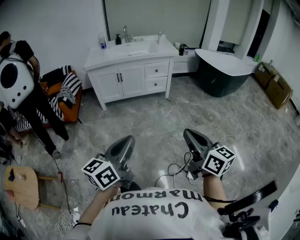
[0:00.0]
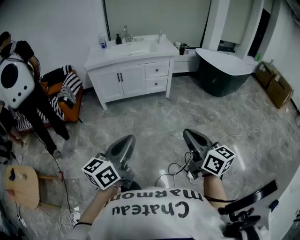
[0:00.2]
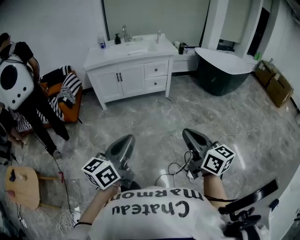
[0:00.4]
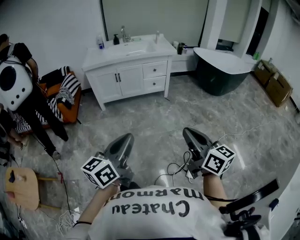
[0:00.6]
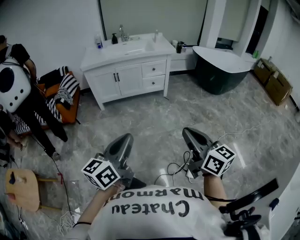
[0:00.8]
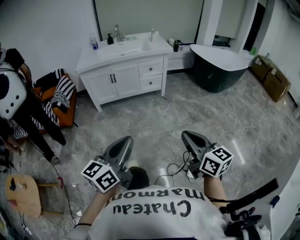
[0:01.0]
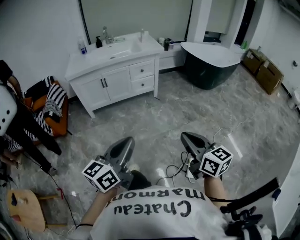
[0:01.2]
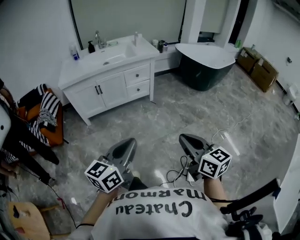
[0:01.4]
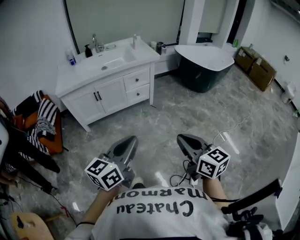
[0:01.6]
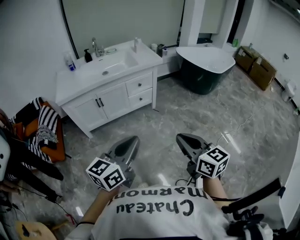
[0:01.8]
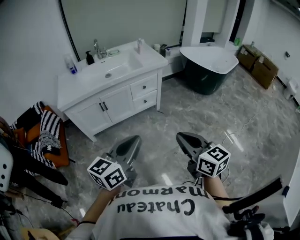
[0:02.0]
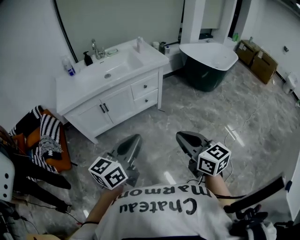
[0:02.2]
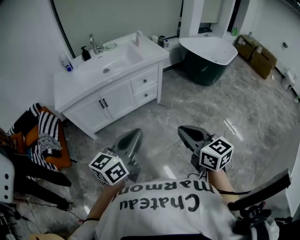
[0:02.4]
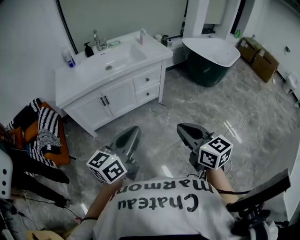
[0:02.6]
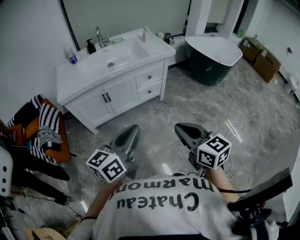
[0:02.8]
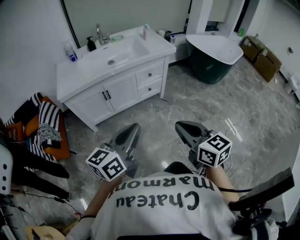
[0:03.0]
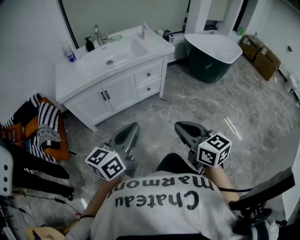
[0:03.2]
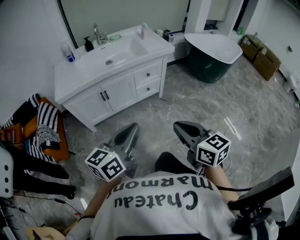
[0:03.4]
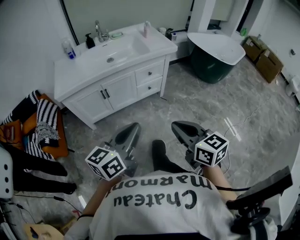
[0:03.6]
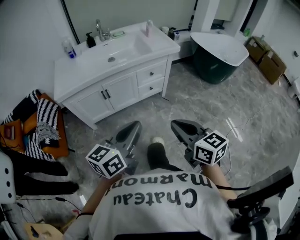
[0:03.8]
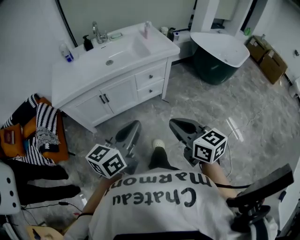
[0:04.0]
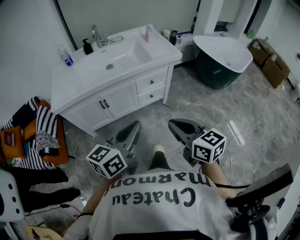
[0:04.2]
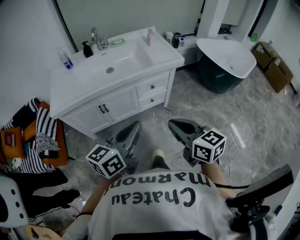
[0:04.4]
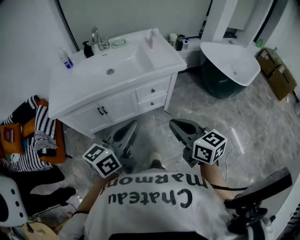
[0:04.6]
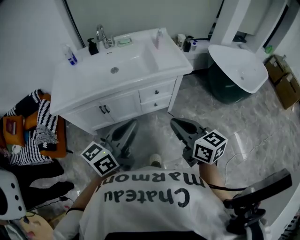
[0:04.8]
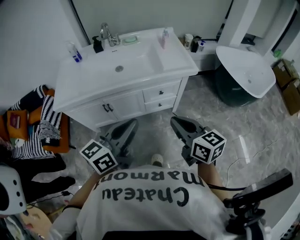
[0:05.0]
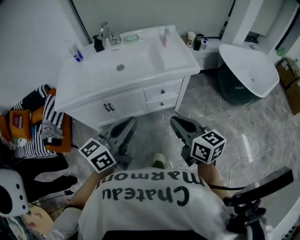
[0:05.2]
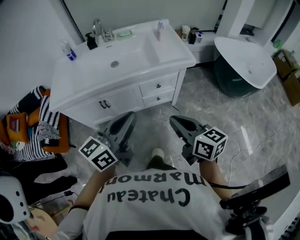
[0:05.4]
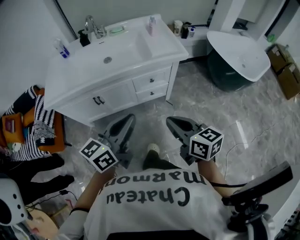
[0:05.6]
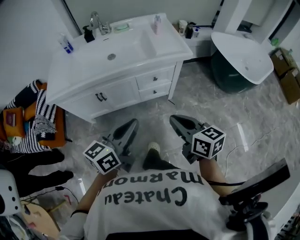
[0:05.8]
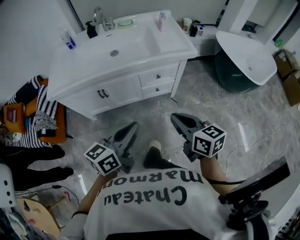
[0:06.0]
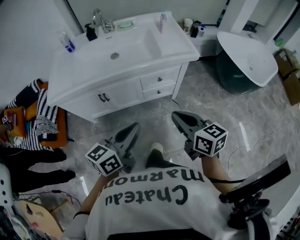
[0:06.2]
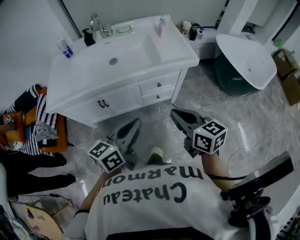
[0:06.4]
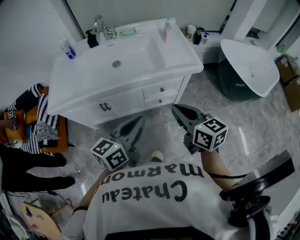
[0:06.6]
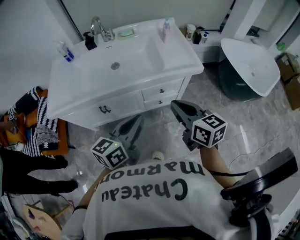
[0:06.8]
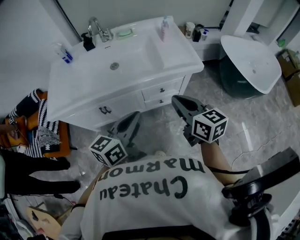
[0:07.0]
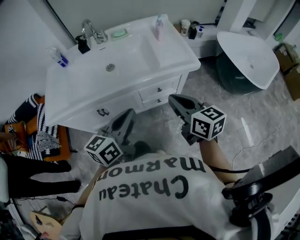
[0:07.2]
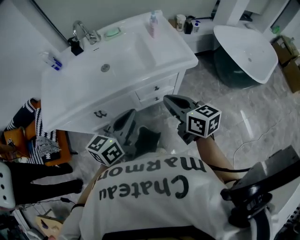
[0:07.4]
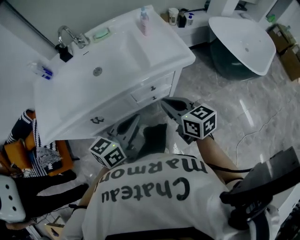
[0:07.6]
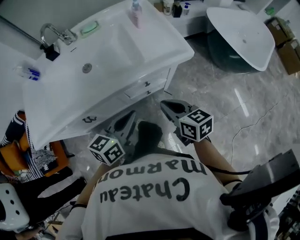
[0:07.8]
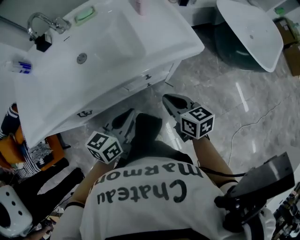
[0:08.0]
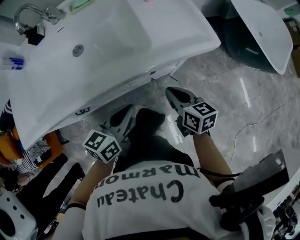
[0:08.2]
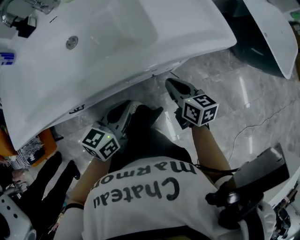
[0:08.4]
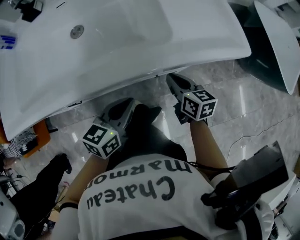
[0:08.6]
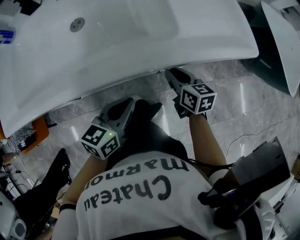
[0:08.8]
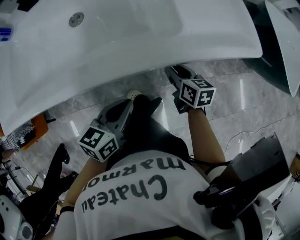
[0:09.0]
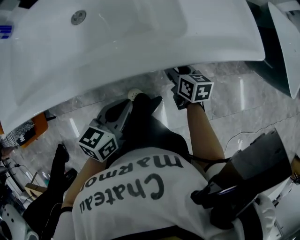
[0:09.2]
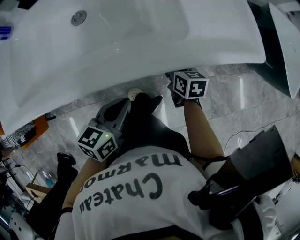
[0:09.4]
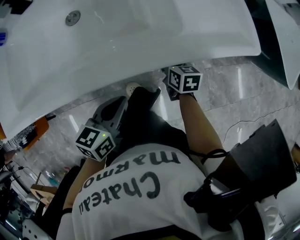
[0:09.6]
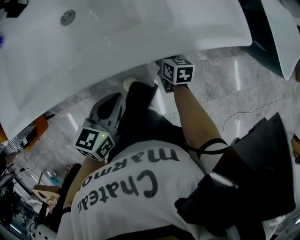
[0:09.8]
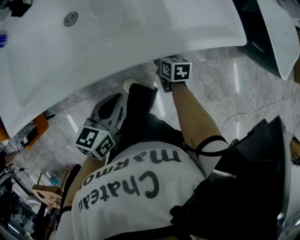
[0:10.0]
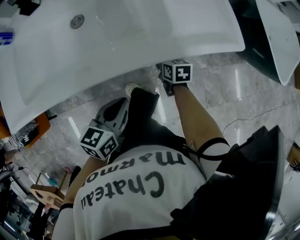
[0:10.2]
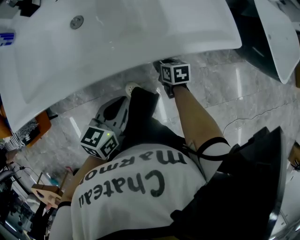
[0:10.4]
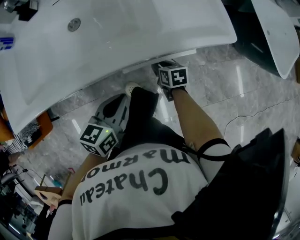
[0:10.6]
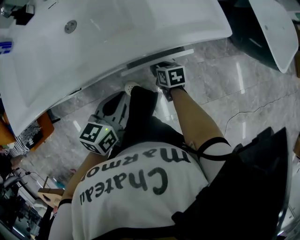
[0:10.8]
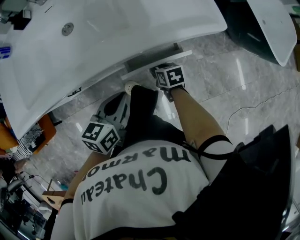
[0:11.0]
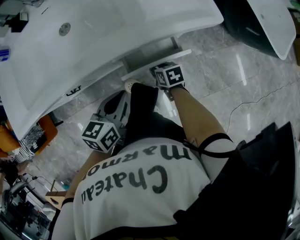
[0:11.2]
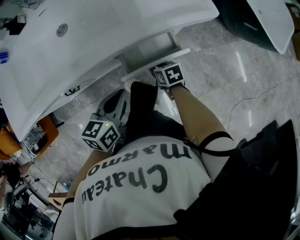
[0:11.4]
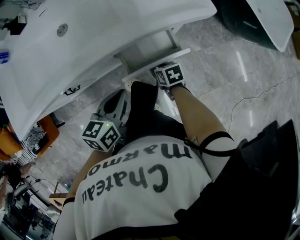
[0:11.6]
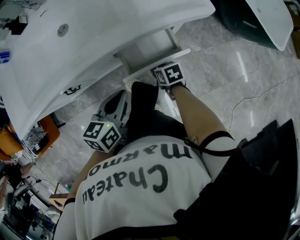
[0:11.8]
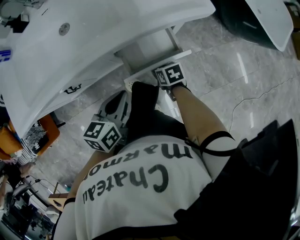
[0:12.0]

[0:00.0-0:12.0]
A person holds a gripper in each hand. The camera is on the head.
0:00.0 to 0:01.6: Both grippers travel together forward, approximately 20 cm.
0:01.6 to 0:03.0: The left gripper travels forward and to the left by some 20 cm; the right gripper shifts some 20 cm to the left and forward.
0:03.0 to 0:04.4: The two grippers go approximately 20 cm forward.
0:04.4 to 0:06.0: The right gripper travels forward, downward and to the right by some 10 cm, while the left gripper goes some 5 cm downward.
0:06.0 to 0:07.6: The two grippers go roughly 20 cm forward.
0:07.6 to 0:09.0: The right gripper travels downward and forward by about 35 cm, and opens up. The left gripper goes some 25 cm downward.
0:09.0 to 0:10.4: The left gripper goes approximately 5 cm upward.
0:10.4 to 0:12.0: The right gripper is displaced backward by roughly 10 cm. Meanwhile the left gripper shifts by some 5 cm.

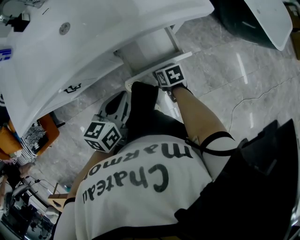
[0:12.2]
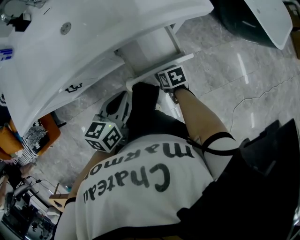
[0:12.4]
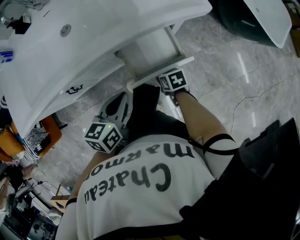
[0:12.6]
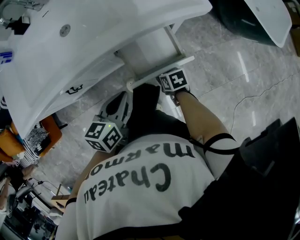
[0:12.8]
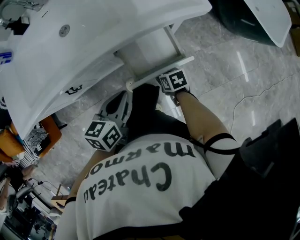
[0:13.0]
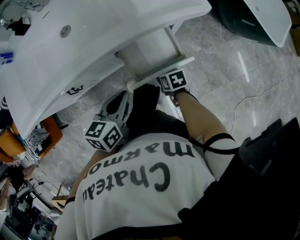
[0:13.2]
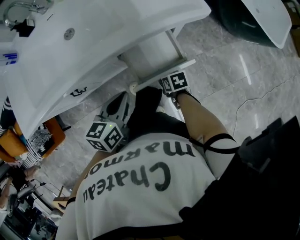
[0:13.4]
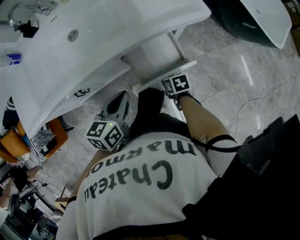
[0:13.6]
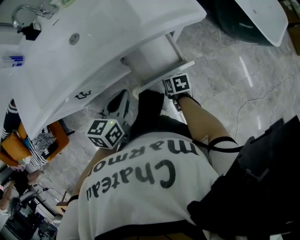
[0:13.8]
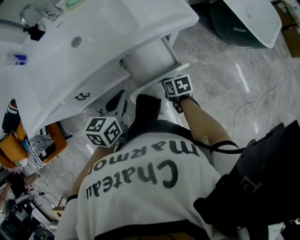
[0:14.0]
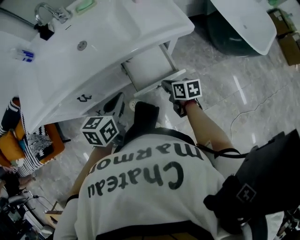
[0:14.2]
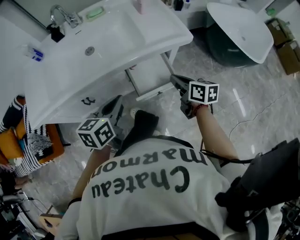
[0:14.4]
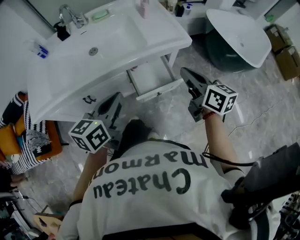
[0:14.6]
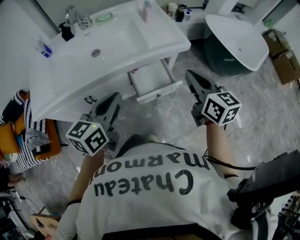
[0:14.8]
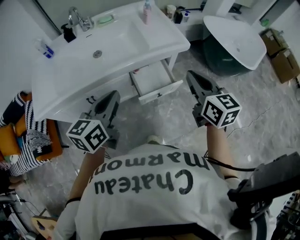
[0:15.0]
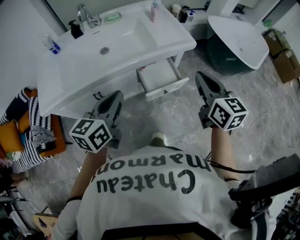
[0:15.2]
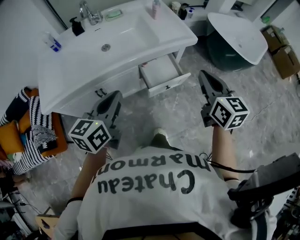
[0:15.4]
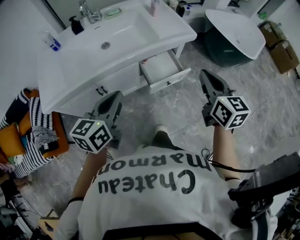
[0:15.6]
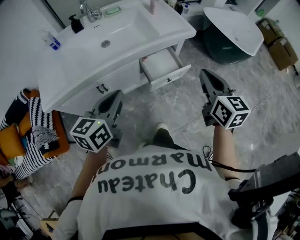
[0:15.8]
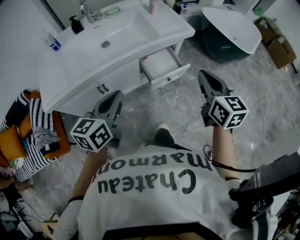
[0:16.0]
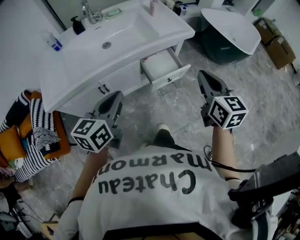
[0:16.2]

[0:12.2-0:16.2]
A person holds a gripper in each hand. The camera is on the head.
0:12.2 to 0:13.6: The grippers make only small movements.
0:13.6 to 0:14.8: The left gripper goes approximately 20 cm upward. The right gripper shifts roughly 40 cm upward, points its fingers approximately 50 degrees further upward, and closes.
0:14.8 to 0:16.2: The left gripper travels backward and to the left by some 15 cm. Meanwhile the right gripper is displaced backward by approximately 15 cm.

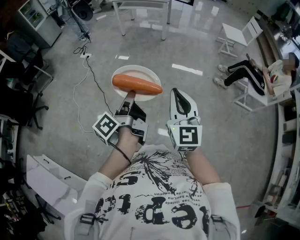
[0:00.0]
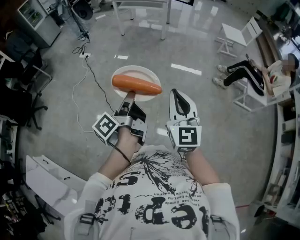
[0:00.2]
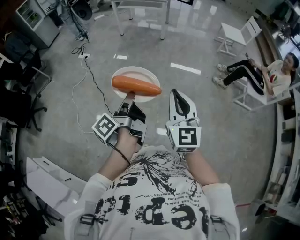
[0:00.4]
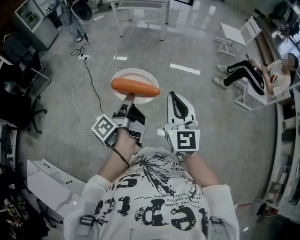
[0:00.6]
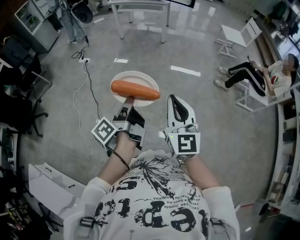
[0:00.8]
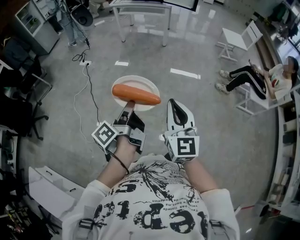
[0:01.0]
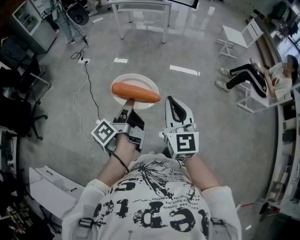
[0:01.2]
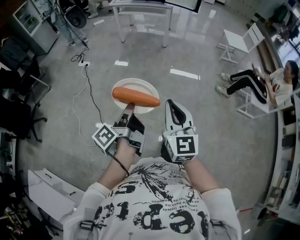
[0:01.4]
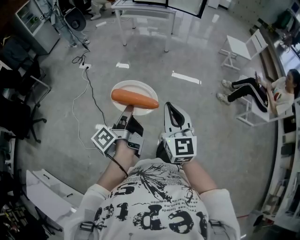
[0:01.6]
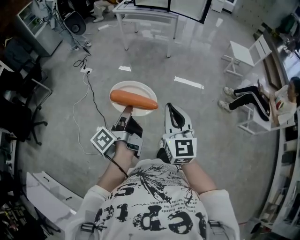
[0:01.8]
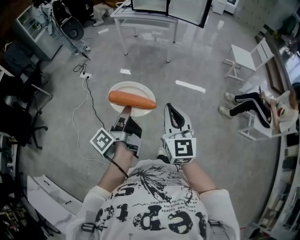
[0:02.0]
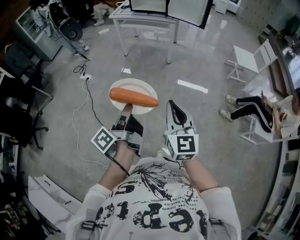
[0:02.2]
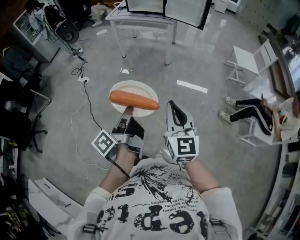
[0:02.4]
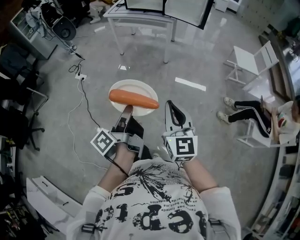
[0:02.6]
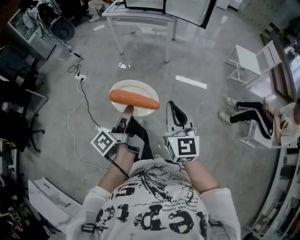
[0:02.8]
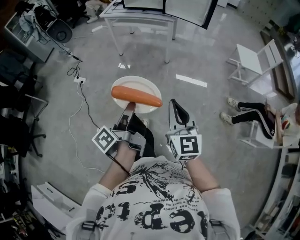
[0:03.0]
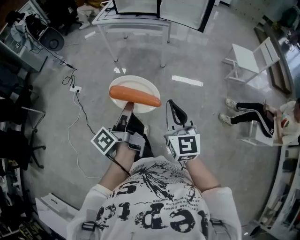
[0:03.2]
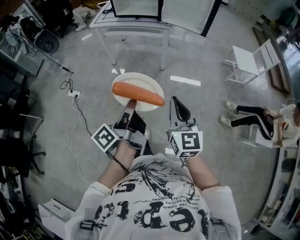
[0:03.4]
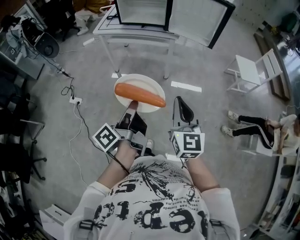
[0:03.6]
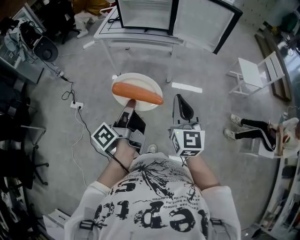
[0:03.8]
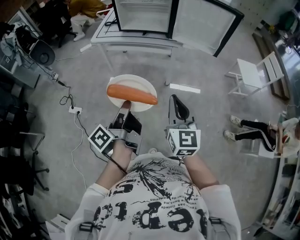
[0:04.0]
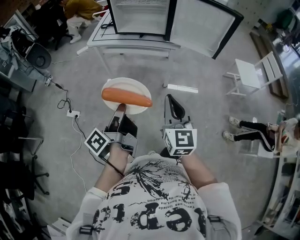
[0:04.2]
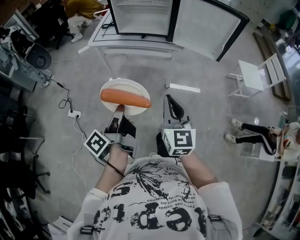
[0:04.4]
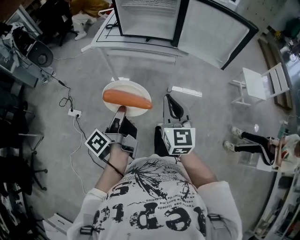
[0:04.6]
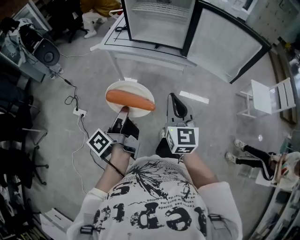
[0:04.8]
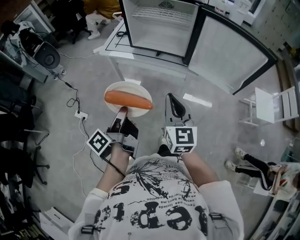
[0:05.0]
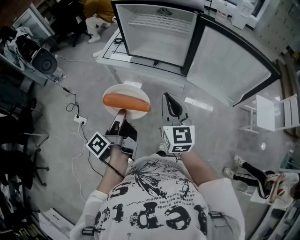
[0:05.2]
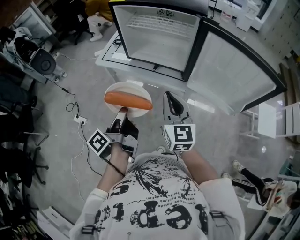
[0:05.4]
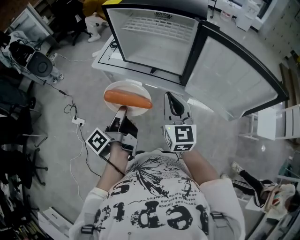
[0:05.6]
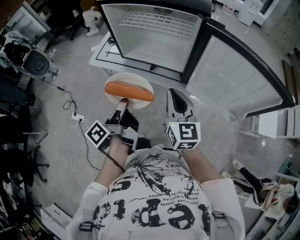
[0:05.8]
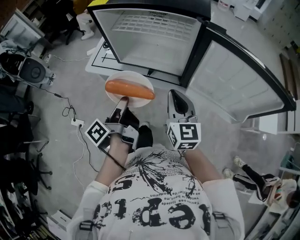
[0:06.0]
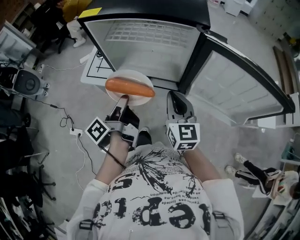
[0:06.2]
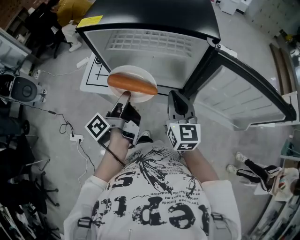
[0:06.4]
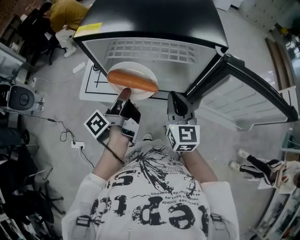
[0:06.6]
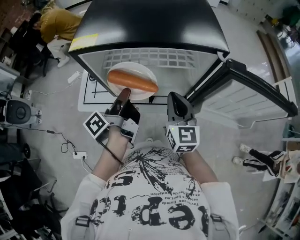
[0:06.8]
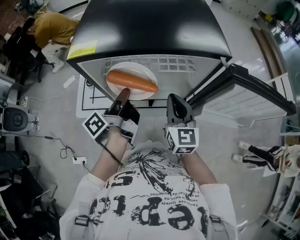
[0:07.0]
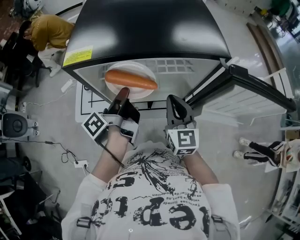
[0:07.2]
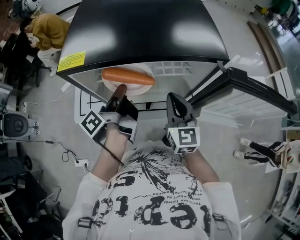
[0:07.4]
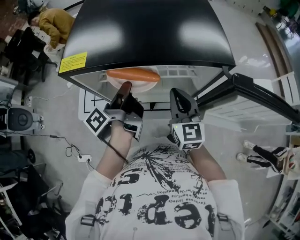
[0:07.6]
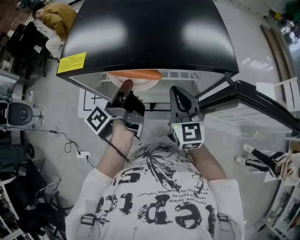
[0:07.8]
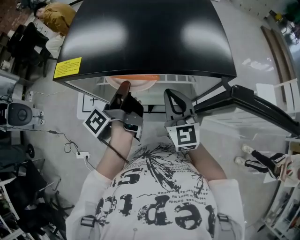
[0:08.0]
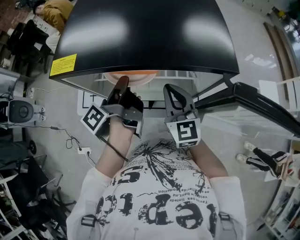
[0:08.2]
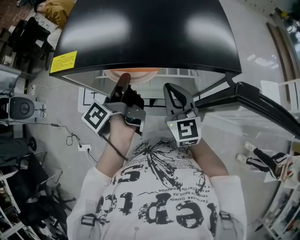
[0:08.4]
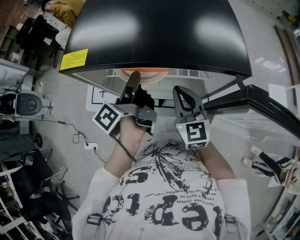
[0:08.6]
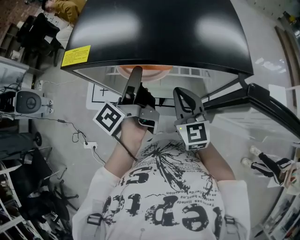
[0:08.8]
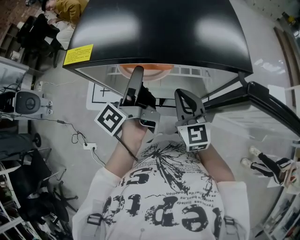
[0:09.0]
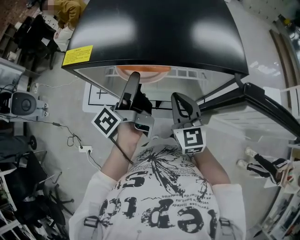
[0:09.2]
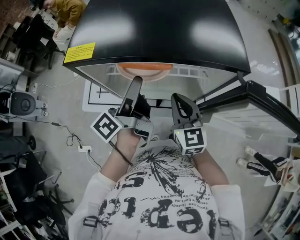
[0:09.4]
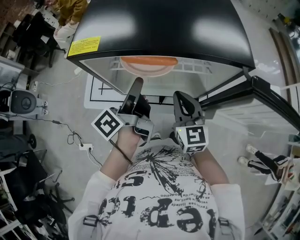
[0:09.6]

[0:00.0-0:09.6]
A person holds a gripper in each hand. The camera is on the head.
0:00.0 to 0:01.6: The right gripper changes place by roughly 15 cm.
0:01.6 to 0:03.2: The right gripper moves approximately 40 cm.
0:03.2 to 0:04.8: The right gripper changes place by roughly 50 cm.
0:04.8 to 0:06.4: The right gripper moves about 35 cm.
0:06.4 to 0:08.0: The right gripper moves about 10 cm.
0:08.0 to 0:09.6: The right gripper ends up approximately 5 cm from where it was.
